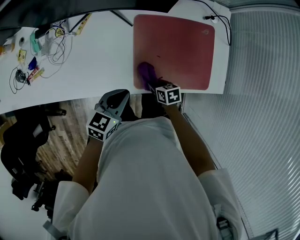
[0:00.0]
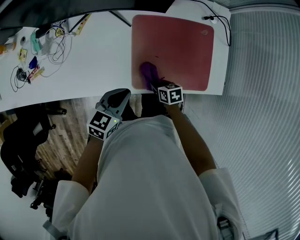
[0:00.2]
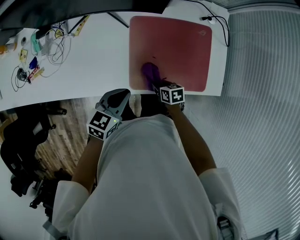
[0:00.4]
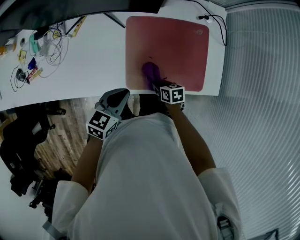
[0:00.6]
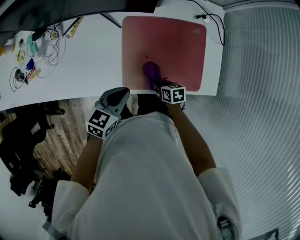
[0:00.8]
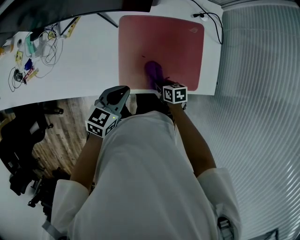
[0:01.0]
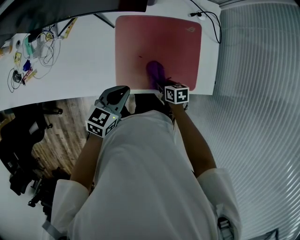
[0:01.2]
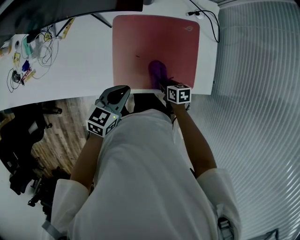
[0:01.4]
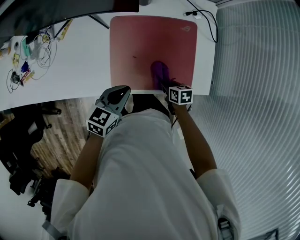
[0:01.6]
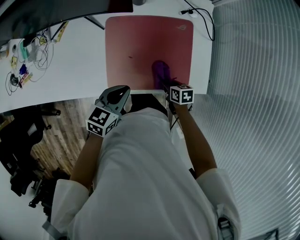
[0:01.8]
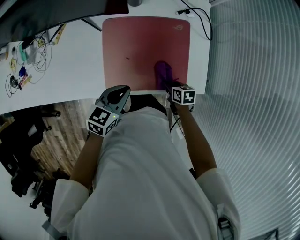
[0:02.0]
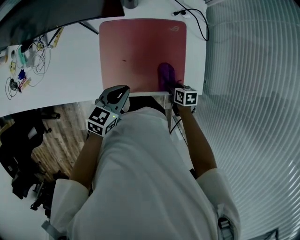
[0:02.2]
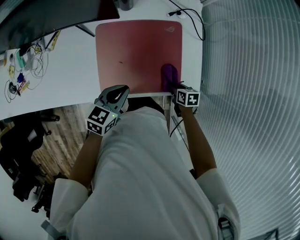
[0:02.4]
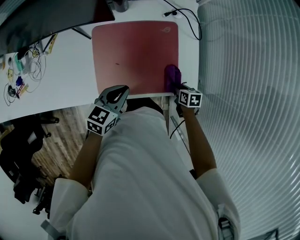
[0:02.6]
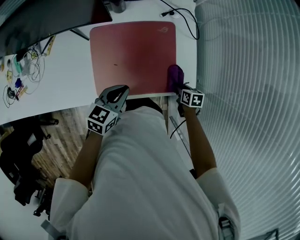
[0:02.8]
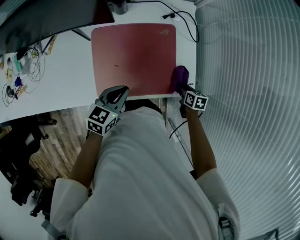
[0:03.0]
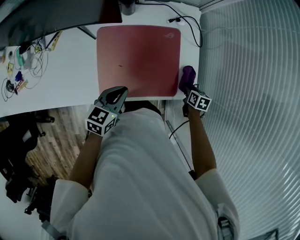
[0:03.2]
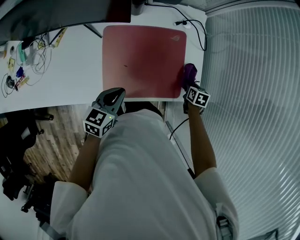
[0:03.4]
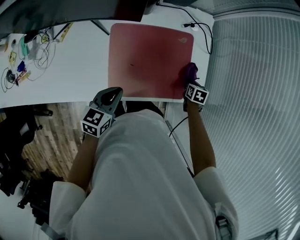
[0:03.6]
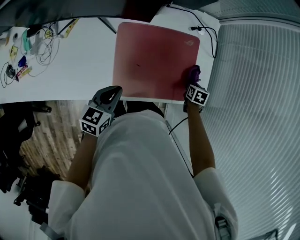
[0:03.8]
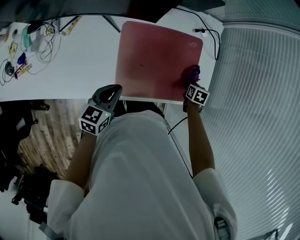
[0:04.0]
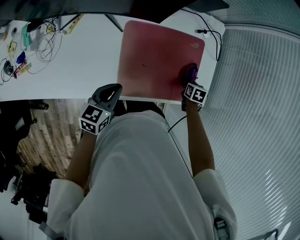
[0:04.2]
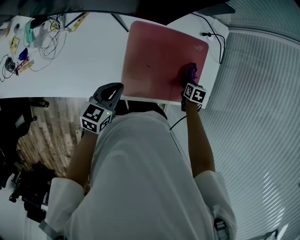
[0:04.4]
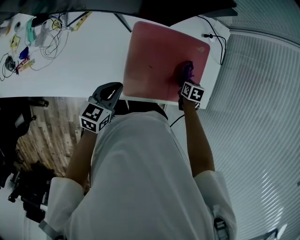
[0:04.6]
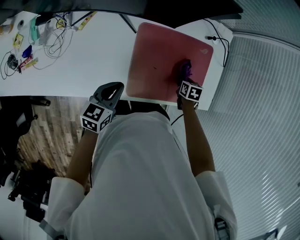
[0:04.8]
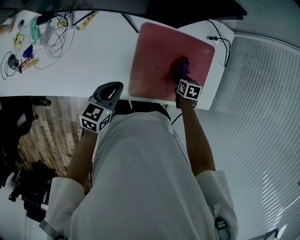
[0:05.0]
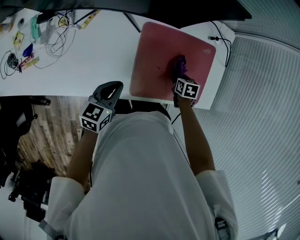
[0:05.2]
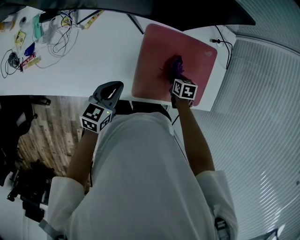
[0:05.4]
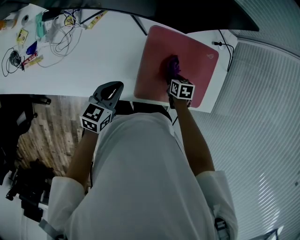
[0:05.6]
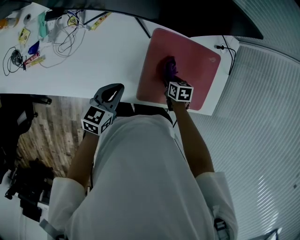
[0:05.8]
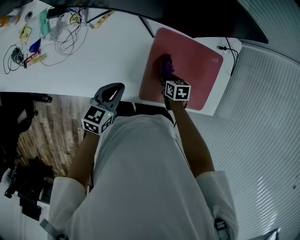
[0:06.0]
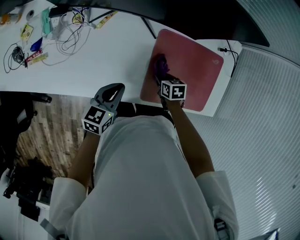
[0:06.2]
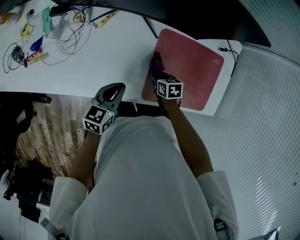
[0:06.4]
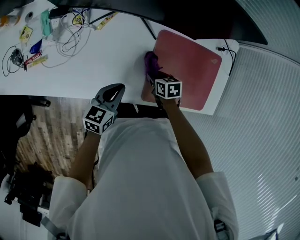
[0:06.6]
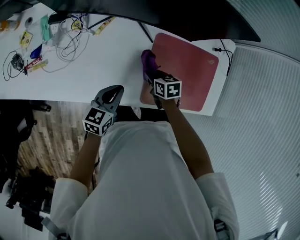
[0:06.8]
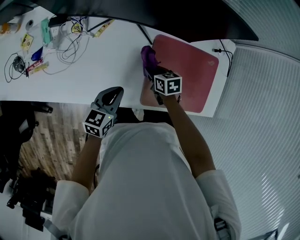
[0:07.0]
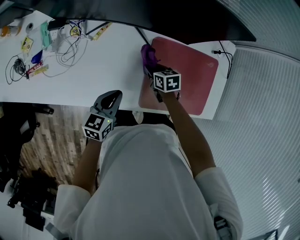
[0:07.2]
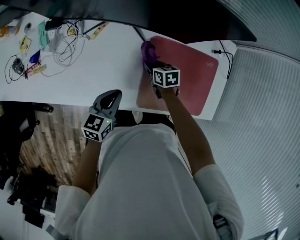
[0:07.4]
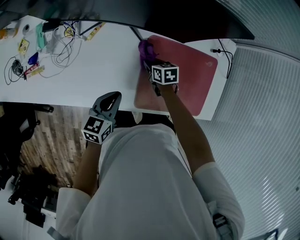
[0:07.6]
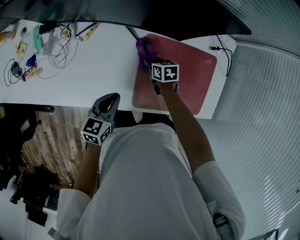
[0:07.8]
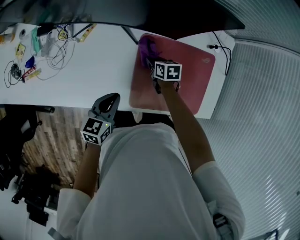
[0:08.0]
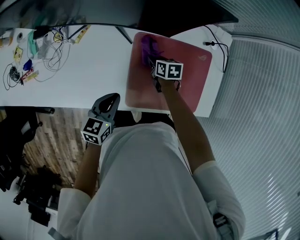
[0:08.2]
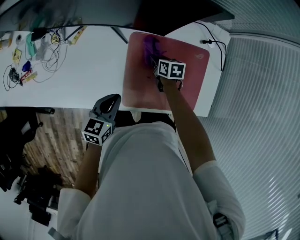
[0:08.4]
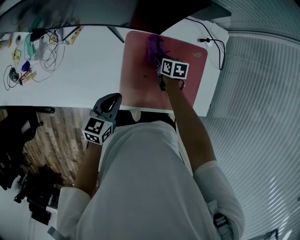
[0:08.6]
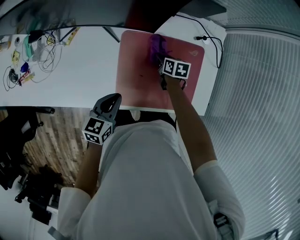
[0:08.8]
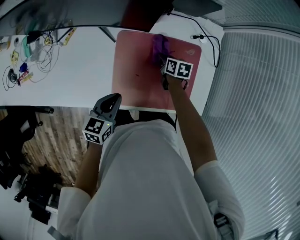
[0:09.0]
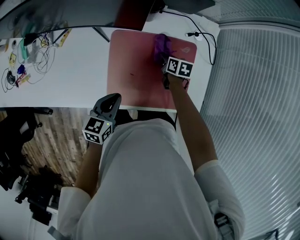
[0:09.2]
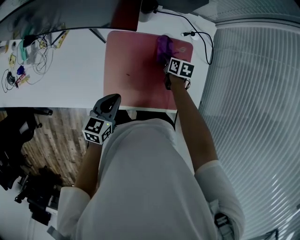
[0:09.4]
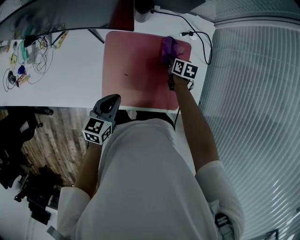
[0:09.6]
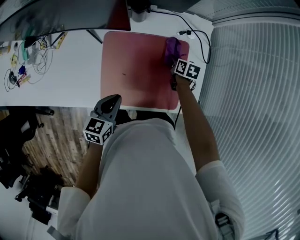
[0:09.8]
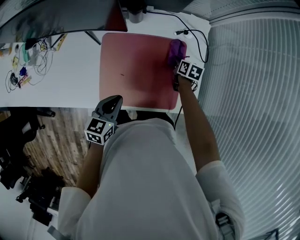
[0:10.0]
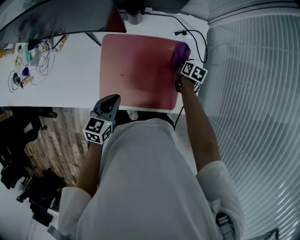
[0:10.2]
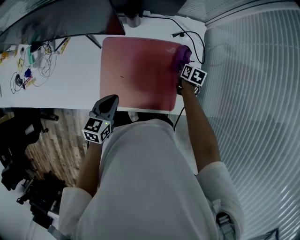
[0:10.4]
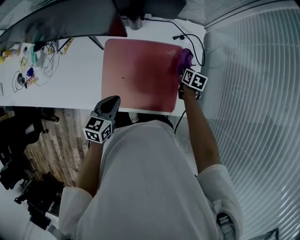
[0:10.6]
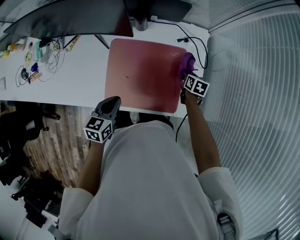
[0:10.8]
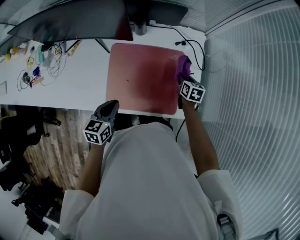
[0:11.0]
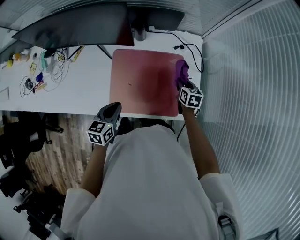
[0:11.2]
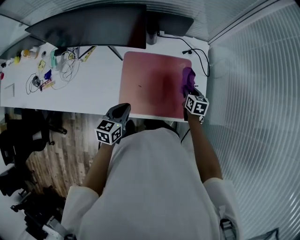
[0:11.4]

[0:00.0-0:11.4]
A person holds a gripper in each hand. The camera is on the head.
0:00.0 to 0:01.4: Both grippers move to the right, approximately 15 cm.
0:01.4 to 0:02.8: The left gripper shifts some 10 cm to the right; the right gripper goes some 20 cm to the right.
0:02.8 to 0:04.2: The left gripper changes place by about 15 cm, while the right gripper changes place by approximately 10 cm.
0:04.2 to 0:05.6: The right gripper ends up some 20 cm from where it was, while the left gripper ends up approximately 10 cm from where it was.
0:05.6 to 0:07.2: The right gripper travels to the left and forward by about 20 cm.
0:07.2 to 0:08.6: The two grippers go roughly 15 cm to the right.
0:08.6 to 0:10.0: The left gripper moves to the right, roughly 15 cm; the right gripper moves to the right, approximately 25 cm.
0:10.0 to 0:11.4: The right gripper is displaced upward and backward by some 15 cm, and swivels roughly 20 degrees. The left gripper moves approximately 10 cm.

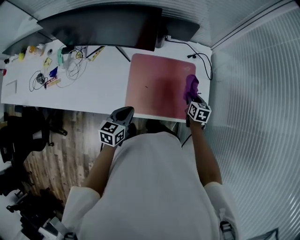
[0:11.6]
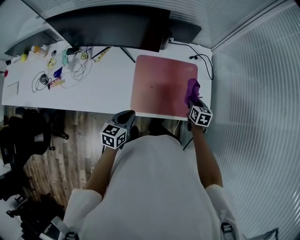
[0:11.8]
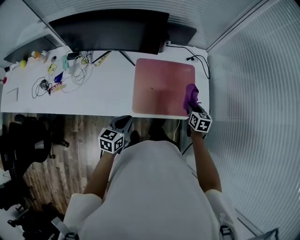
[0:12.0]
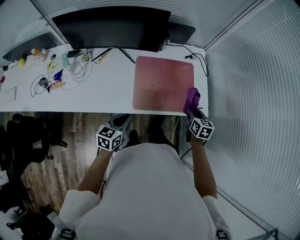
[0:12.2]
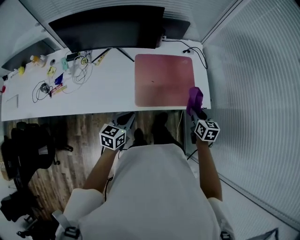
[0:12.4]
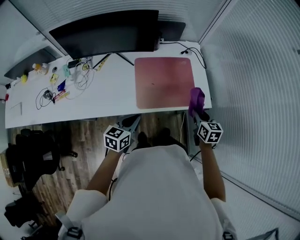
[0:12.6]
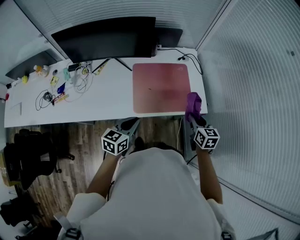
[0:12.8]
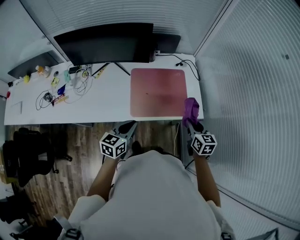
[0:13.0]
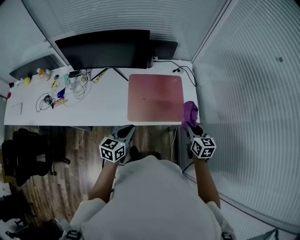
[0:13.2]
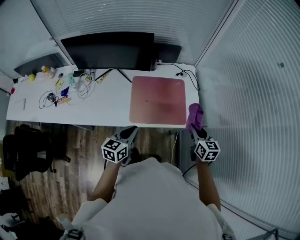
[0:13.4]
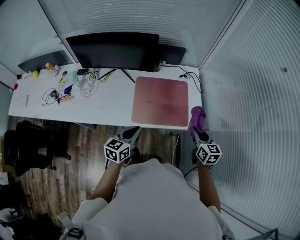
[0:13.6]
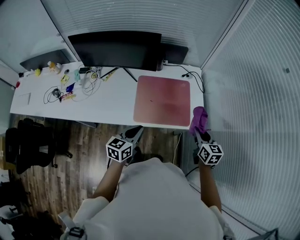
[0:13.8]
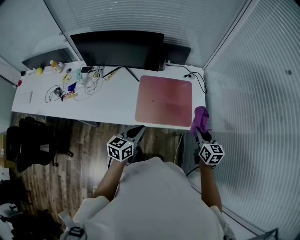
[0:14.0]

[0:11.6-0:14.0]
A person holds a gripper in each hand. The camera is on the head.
0:11.6 to 0:12.8: The left gripper moves backward and upward, some 15 cm; the right gripper goes roughly 25 cm backward and upward.
0:12.8 to 0:14.0: The left gripper moves roughly 5 cm; the right gripper moves about 5 cm.

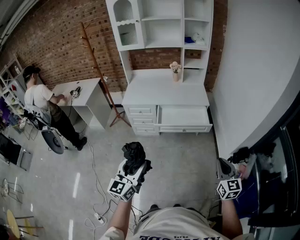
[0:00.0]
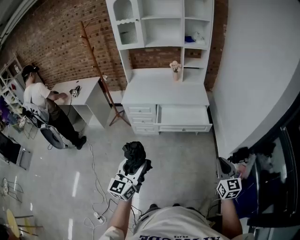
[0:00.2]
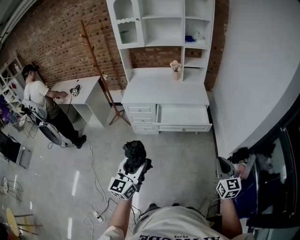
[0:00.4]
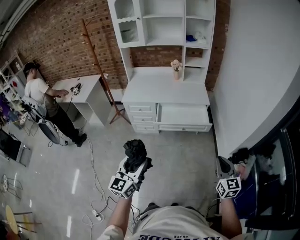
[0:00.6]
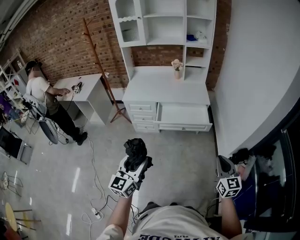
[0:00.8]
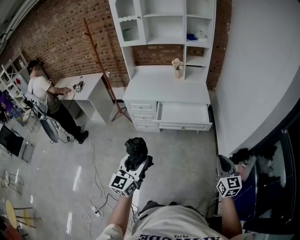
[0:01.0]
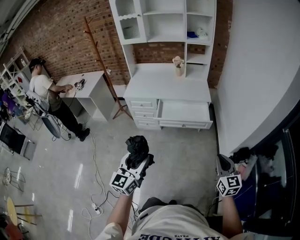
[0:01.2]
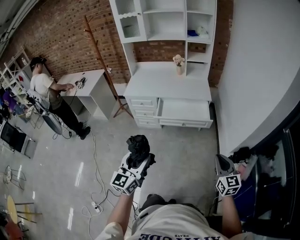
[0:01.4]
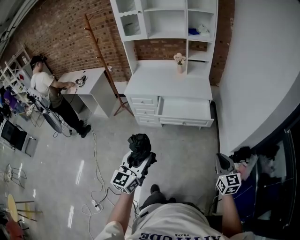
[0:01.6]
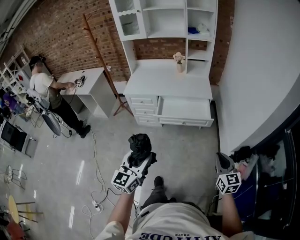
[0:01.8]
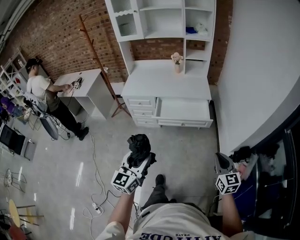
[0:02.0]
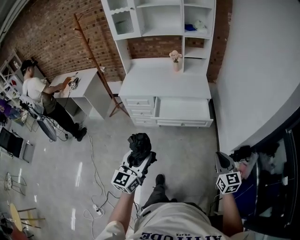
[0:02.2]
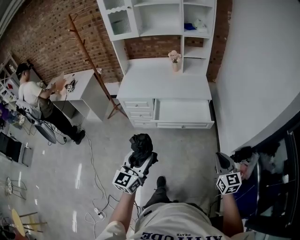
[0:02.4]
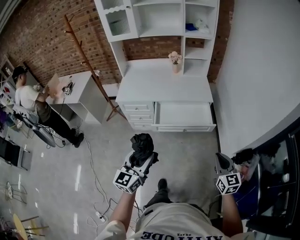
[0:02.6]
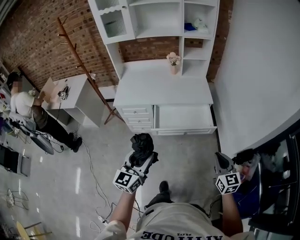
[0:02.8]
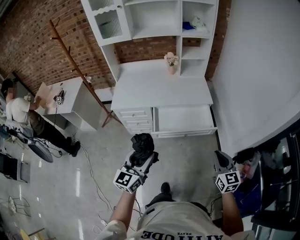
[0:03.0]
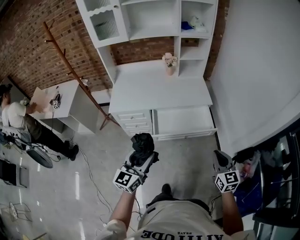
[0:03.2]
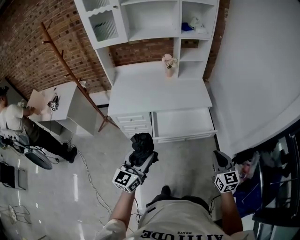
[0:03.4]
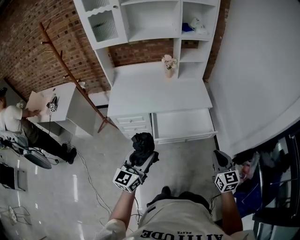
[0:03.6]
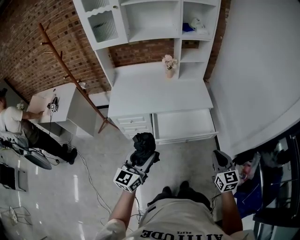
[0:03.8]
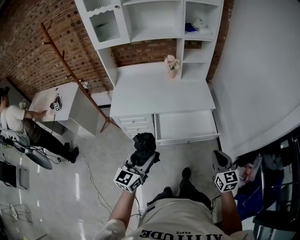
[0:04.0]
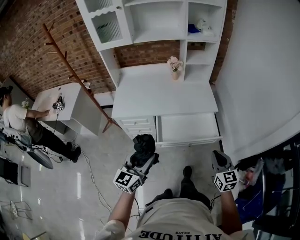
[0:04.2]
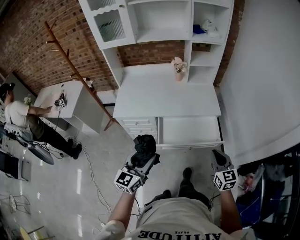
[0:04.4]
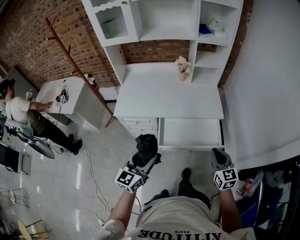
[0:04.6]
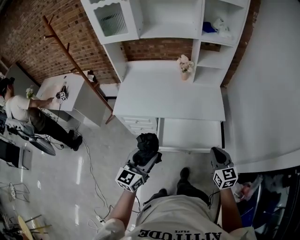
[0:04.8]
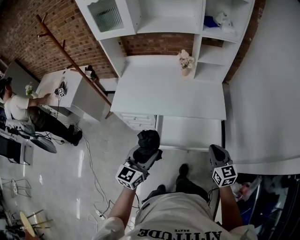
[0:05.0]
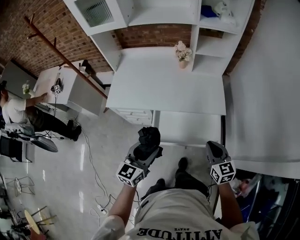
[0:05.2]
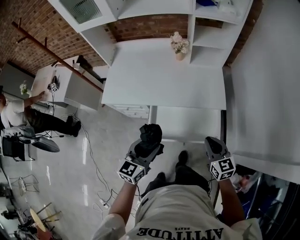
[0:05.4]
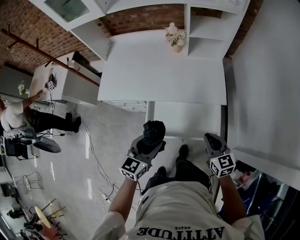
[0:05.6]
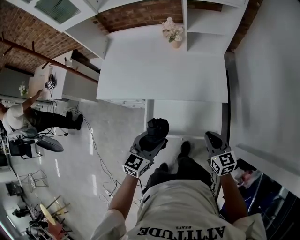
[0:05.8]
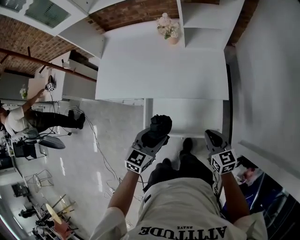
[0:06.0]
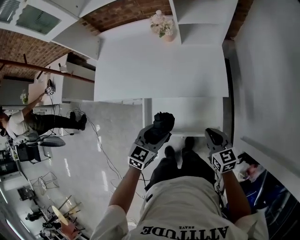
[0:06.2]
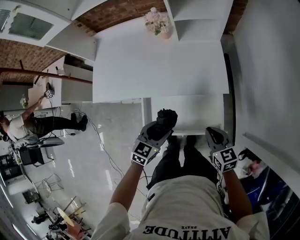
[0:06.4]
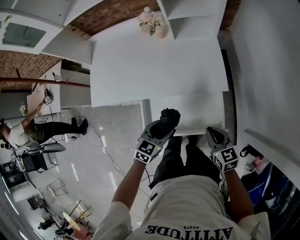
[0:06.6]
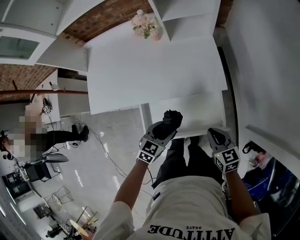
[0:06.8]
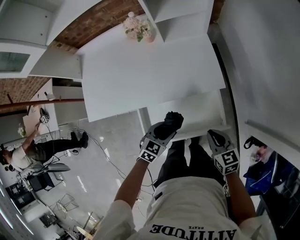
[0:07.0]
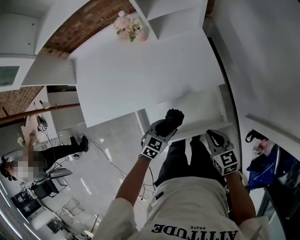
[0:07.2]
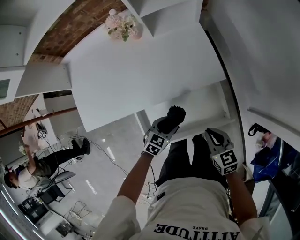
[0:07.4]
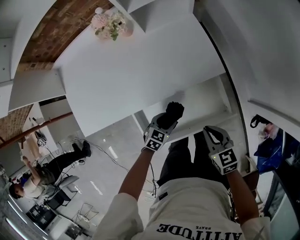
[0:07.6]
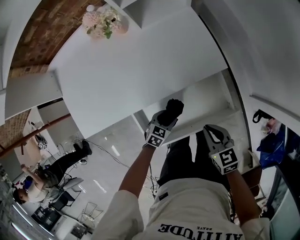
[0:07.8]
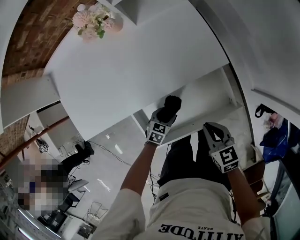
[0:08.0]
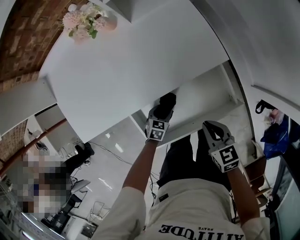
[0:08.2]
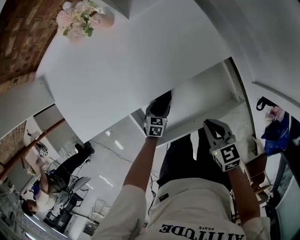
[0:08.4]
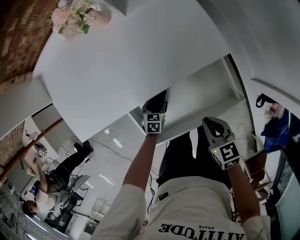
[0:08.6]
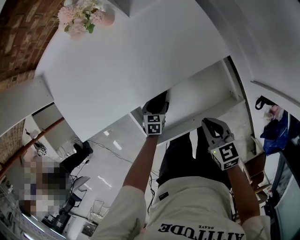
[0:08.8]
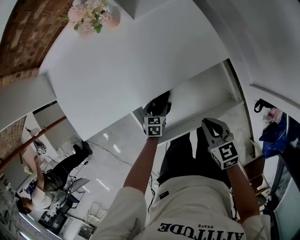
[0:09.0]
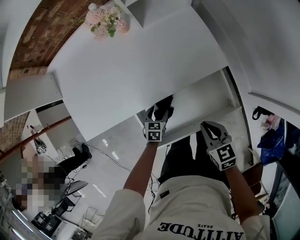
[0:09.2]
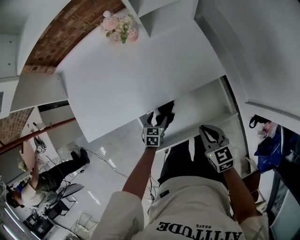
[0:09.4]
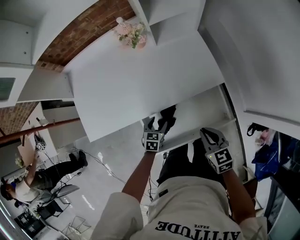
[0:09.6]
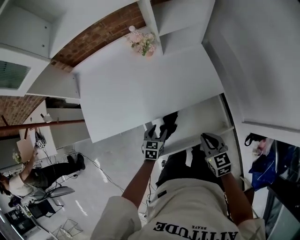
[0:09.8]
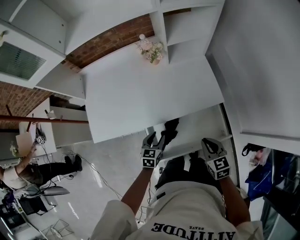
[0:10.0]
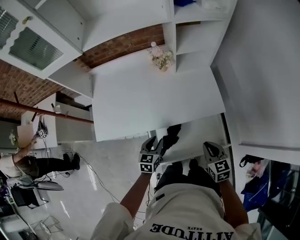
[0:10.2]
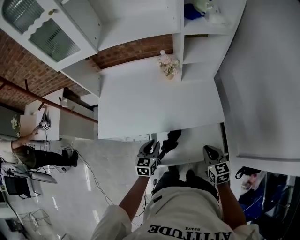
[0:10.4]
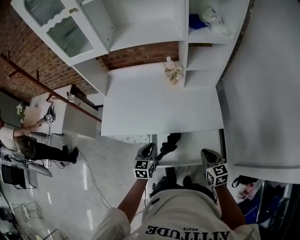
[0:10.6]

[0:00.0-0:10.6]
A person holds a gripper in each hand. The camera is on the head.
0:00.0 to 0:01.6: The right gripper travels to the right by some 5 cm, while the left gripper is displaced to the right by roughly 10 cm.
0:01.6 to 0:03.0: The right gripper travels forward and to the left by about 20 cm. Meanwhile the left gripper shifts about 25 cm forward.
0:03.0 to 0:04.6: Both grippers travel together forward, roughly 15 cm.
0:04.6 to 0:06.0: The left gripper travels forward, to the right and downward by roughly 30 cm, and turns by about 30 degrees. Meanwhile the right gripper goes roughly 25 cm forward, downward and to the right, and turns by roughly 20 degrees.
0:06.0 to 0:07.6: The right gripper shifts roughly 5 cm downward; the left gripper moves downward, about 25 cm, and rotates approximately 40 degrees.
0:07.6 to 0:09.0: The right gripper shifts by roughly 5 cm, while the left gripper moves downward and to the left, some 10 cm, and swivels about 20 degrees.
0:09.0 to 0:10.6: The right gripper shifts roughly 15 cm upward, and swivels approximately 20 degrees, while the left gripper is displaced upward by roughly 30 cm, points its fingers roughly 30 degrees further upward, and closes.
